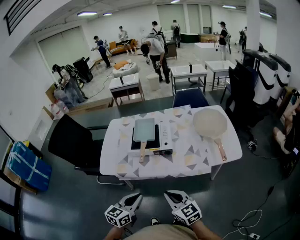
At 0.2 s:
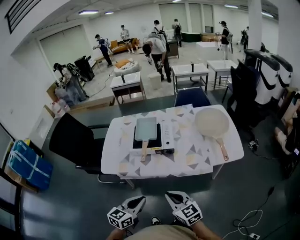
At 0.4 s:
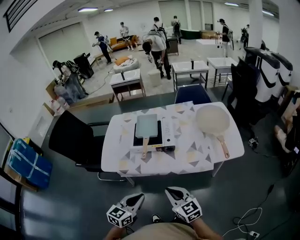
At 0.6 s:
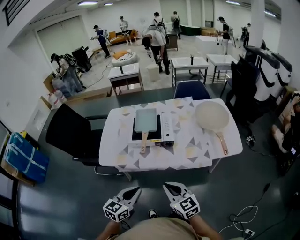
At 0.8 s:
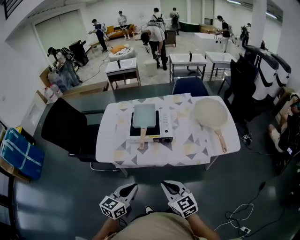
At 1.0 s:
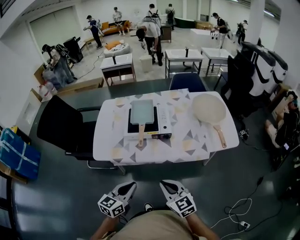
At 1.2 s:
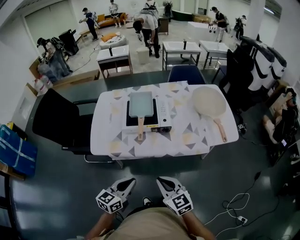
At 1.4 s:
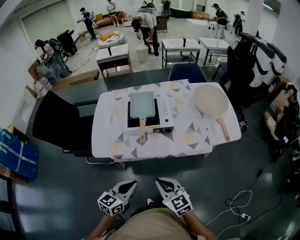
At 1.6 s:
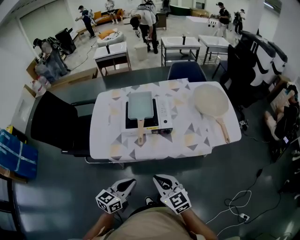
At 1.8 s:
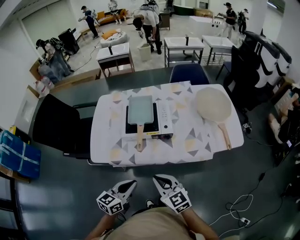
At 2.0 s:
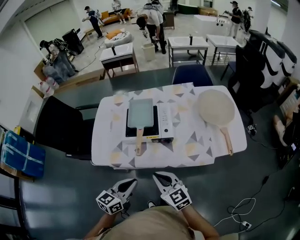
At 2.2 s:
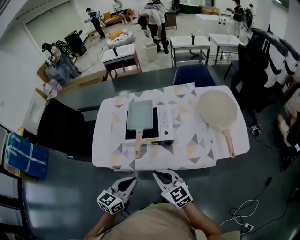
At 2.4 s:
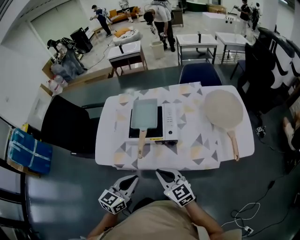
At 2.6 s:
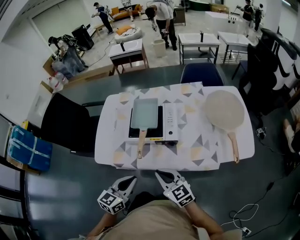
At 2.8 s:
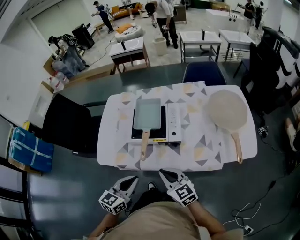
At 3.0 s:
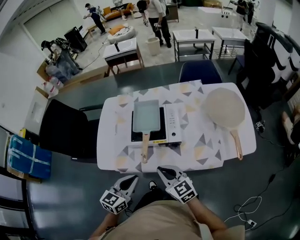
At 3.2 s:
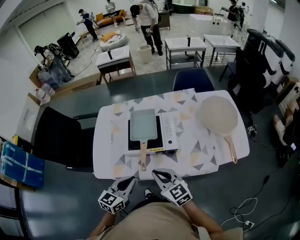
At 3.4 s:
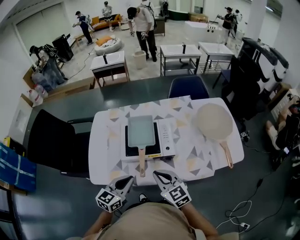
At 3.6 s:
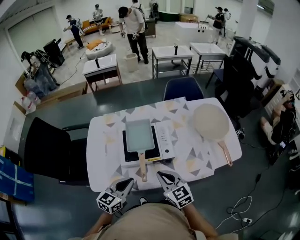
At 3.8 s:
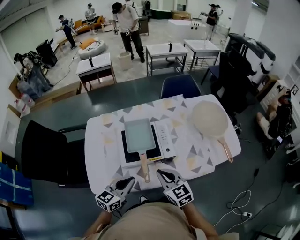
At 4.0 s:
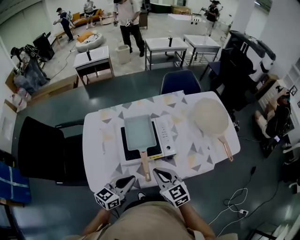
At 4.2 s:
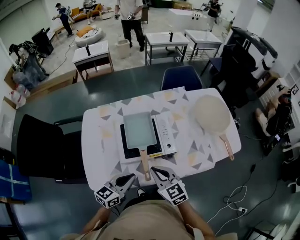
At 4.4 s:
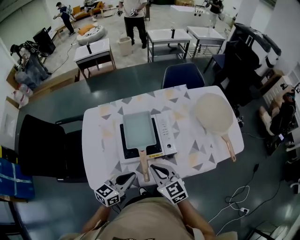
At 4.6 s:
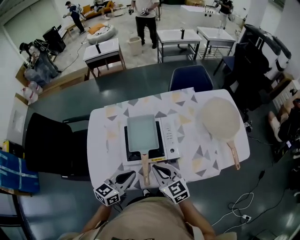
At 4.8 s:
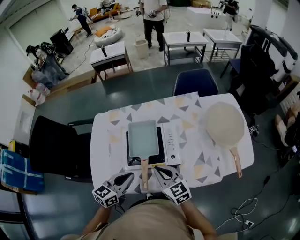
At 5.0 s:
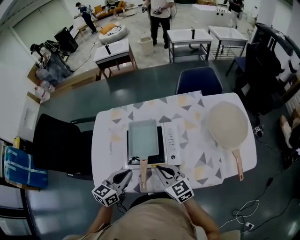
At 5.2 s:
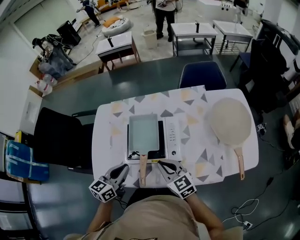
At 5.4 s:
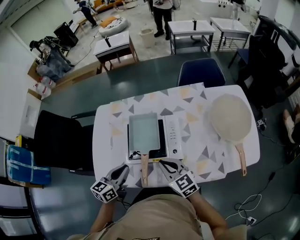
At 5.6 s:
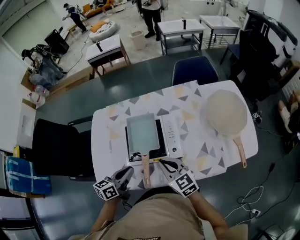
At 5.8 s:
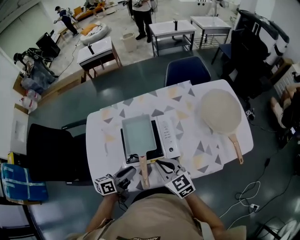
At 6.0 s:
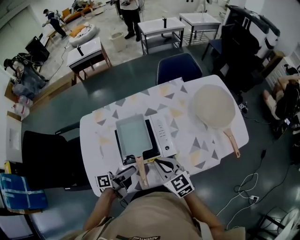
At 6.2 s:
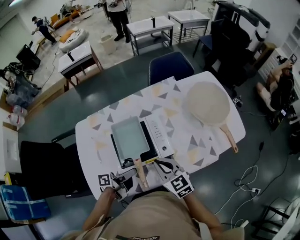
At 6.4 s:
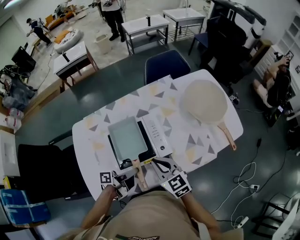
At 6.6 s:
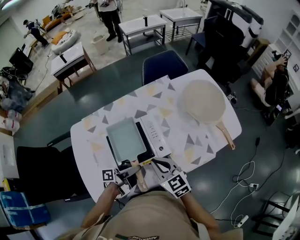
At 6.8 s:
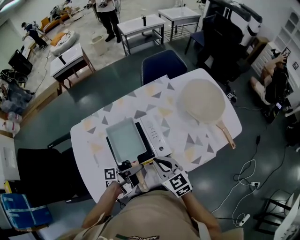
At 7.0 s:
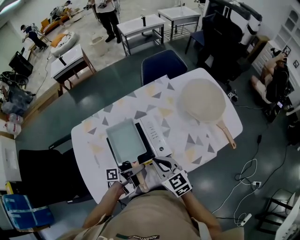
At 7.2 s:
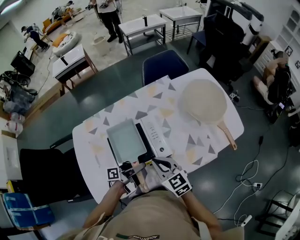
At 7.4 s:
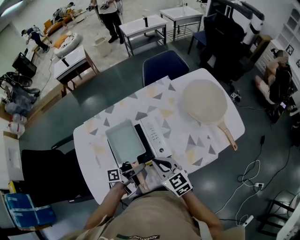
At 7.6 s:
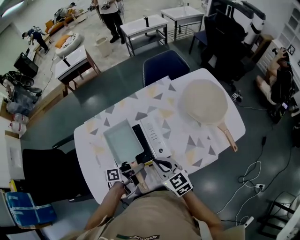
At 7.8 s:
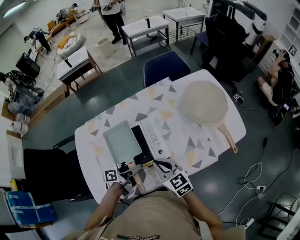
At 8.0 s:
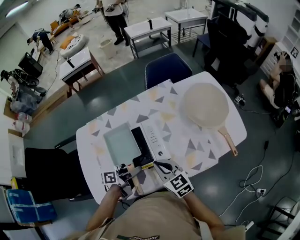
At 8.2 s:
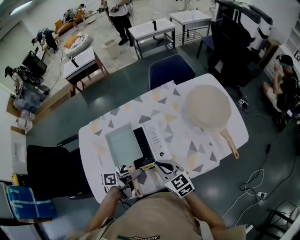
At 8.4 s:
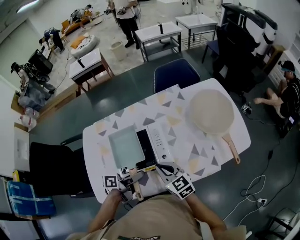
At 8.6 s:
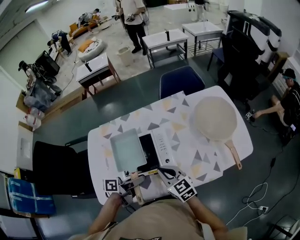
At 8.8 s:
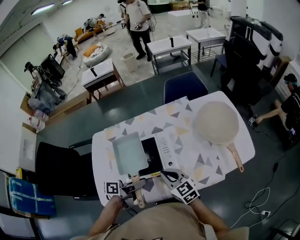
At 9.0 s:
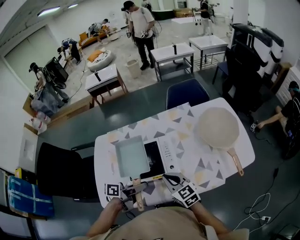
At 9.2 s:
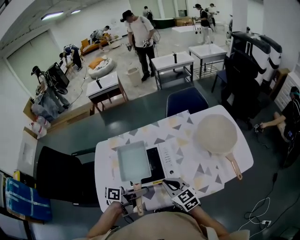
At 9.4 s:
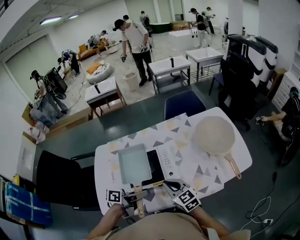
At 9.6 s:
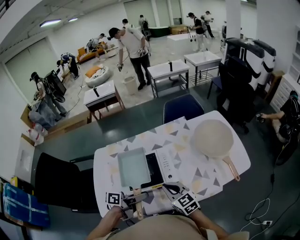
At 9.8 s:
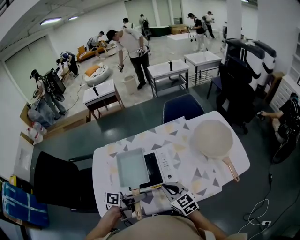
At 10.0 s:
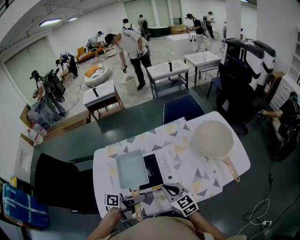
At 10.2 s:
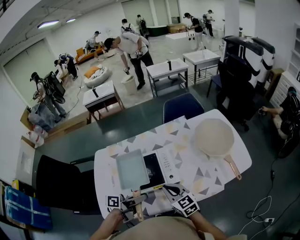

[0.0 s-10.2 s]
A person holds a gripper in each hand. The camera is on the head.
0.0 to 1.4 s: Both grippers move to the left, some 5 cm.
1.4 to 3.0 s: Both grippers travel together forward, approximately 15 cm.
3.0 to 4.4 s: The right gripper shifts about 10 cm forward and to the left. Meanwhile the left gripper is displaced forward by roughly 10 cm, and changes its angle by approximately 20 degrees.
4.4 to 5.8 s: The left gripper heads forward, covering approximately 5 cm, and turns by some 30 degrees, while the right gripper shifts by approximately 5 cm.
5.8 to 7.2 s: The left gripper goes some 10 cm to the right and forward, swivels approximately 40 degrees, and opens and closes again.
7.2 to 8.8 s: The left gripper moves upward, approximately 10 cm, and swivels some 20 degrees.
8.8 to 10.2 s: The grippers stay close to where they were, moving slightly.

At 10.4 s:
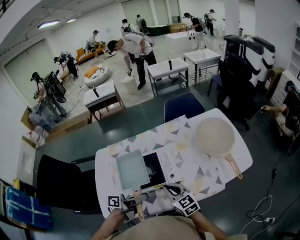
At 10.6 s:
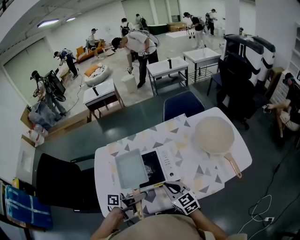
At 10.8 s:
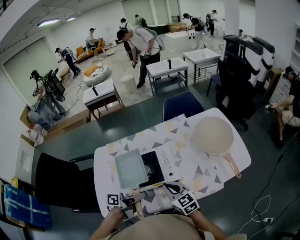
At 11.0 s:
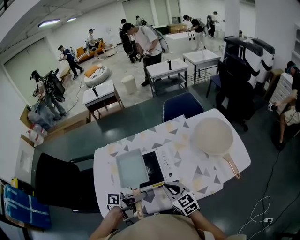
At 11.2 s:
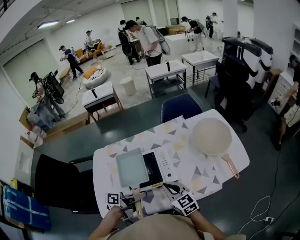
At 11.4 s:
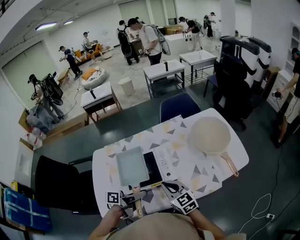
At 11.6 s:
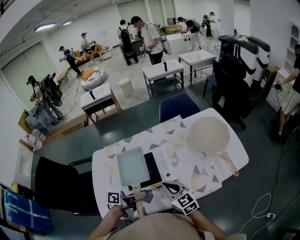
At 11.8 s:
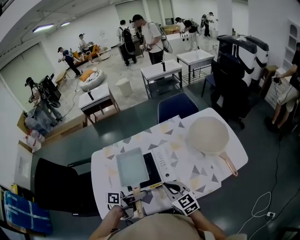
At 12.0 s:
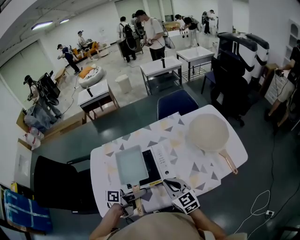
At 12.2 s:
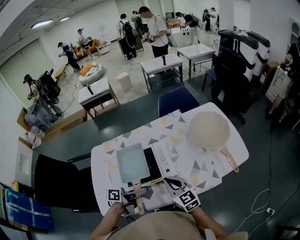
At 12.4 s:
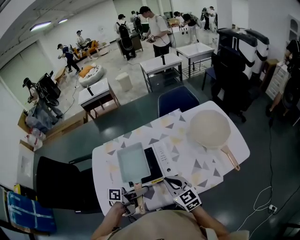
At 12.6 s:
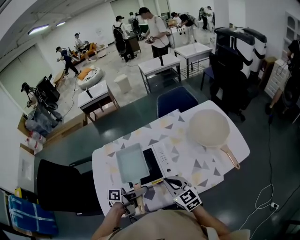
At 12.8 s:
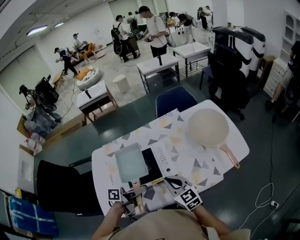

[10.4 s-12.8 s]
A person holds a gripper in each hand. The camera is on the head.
10.4 to 12.8 s: The grippers move only a little.

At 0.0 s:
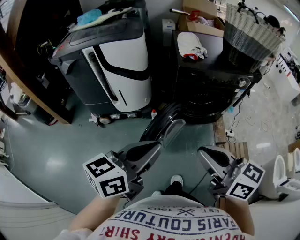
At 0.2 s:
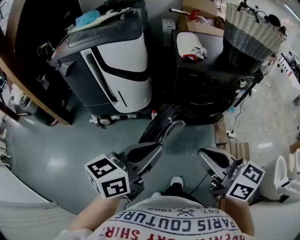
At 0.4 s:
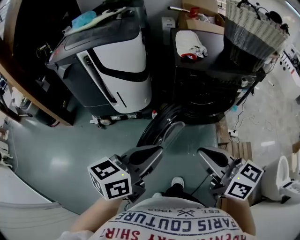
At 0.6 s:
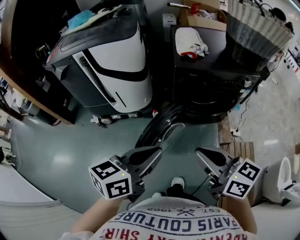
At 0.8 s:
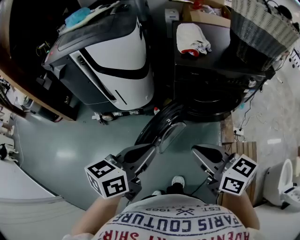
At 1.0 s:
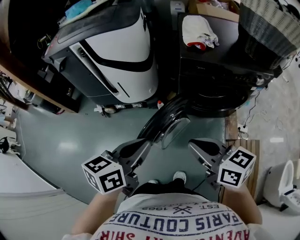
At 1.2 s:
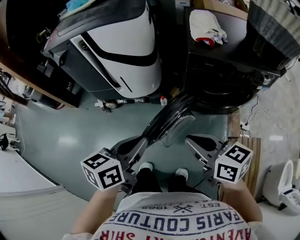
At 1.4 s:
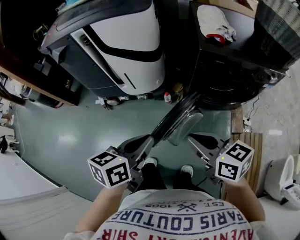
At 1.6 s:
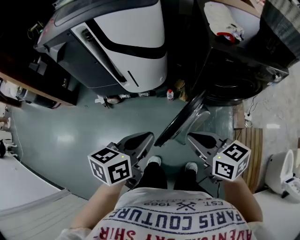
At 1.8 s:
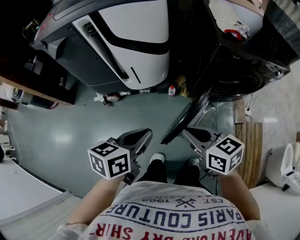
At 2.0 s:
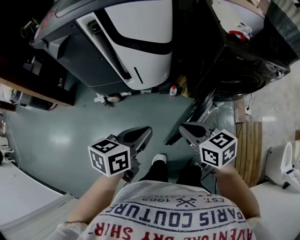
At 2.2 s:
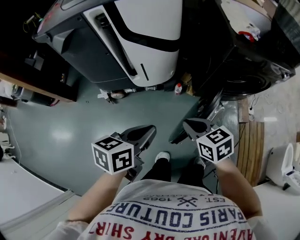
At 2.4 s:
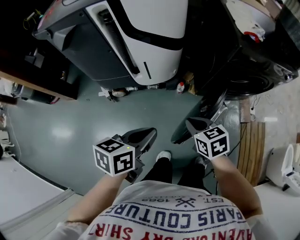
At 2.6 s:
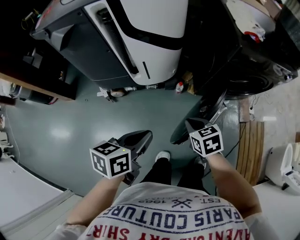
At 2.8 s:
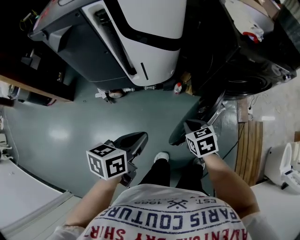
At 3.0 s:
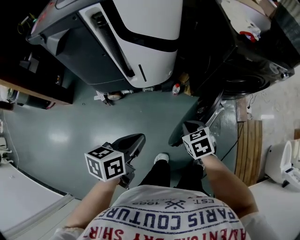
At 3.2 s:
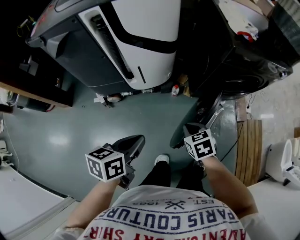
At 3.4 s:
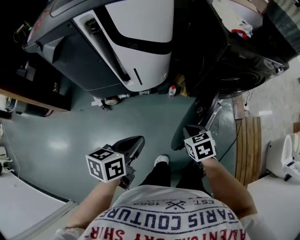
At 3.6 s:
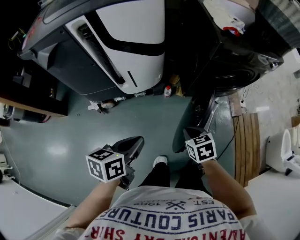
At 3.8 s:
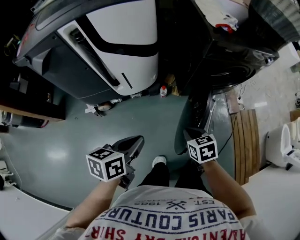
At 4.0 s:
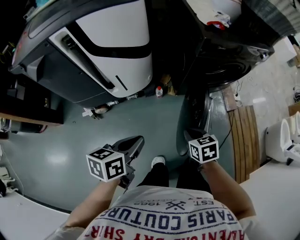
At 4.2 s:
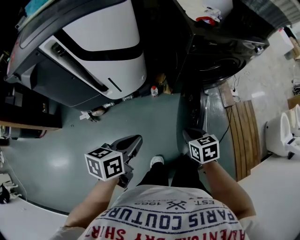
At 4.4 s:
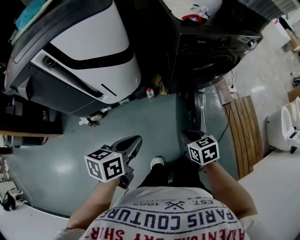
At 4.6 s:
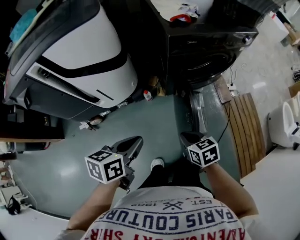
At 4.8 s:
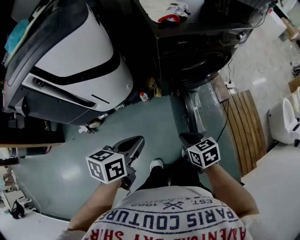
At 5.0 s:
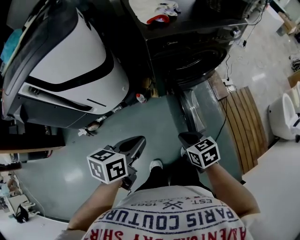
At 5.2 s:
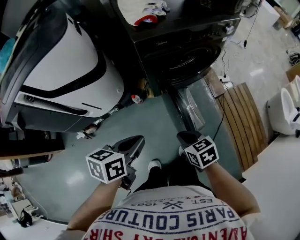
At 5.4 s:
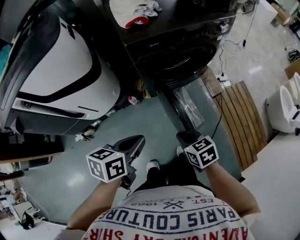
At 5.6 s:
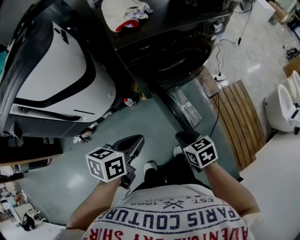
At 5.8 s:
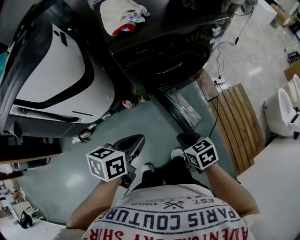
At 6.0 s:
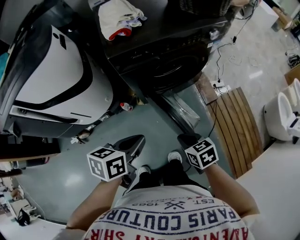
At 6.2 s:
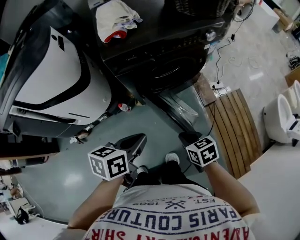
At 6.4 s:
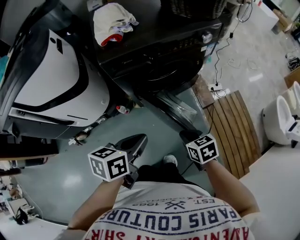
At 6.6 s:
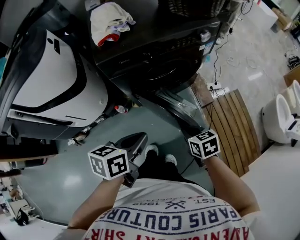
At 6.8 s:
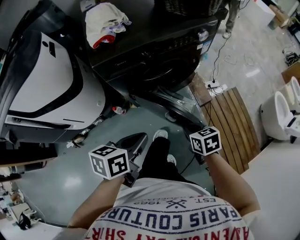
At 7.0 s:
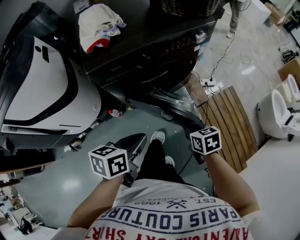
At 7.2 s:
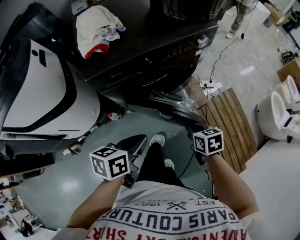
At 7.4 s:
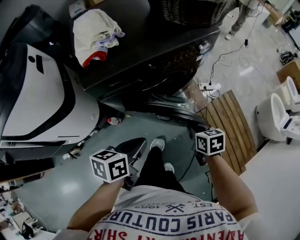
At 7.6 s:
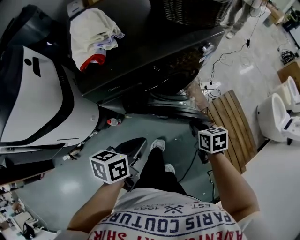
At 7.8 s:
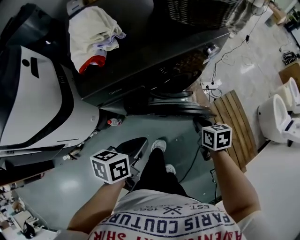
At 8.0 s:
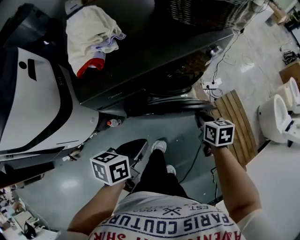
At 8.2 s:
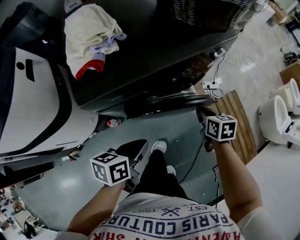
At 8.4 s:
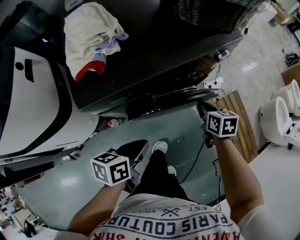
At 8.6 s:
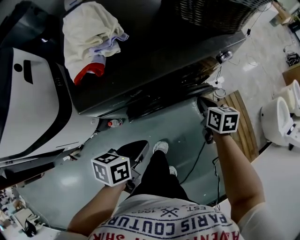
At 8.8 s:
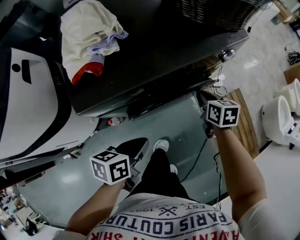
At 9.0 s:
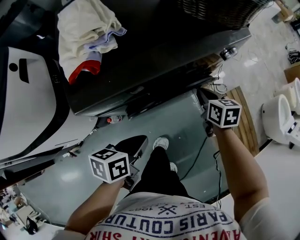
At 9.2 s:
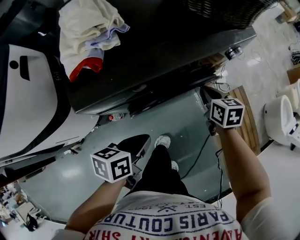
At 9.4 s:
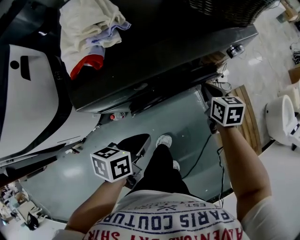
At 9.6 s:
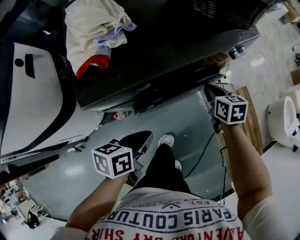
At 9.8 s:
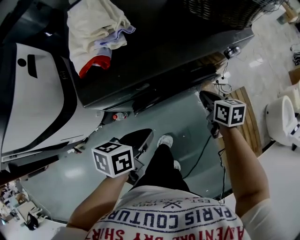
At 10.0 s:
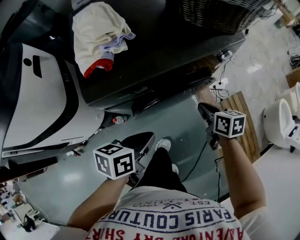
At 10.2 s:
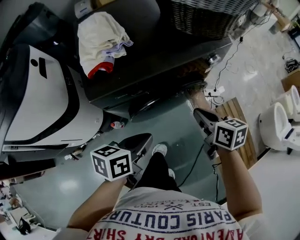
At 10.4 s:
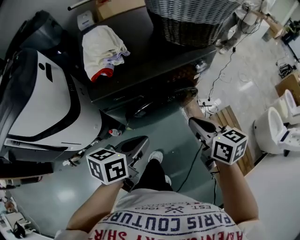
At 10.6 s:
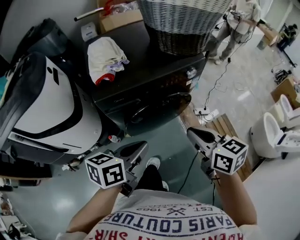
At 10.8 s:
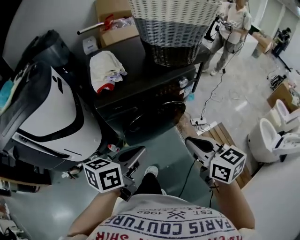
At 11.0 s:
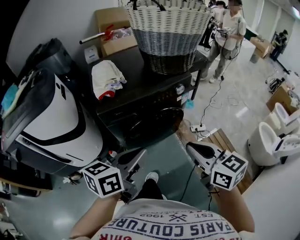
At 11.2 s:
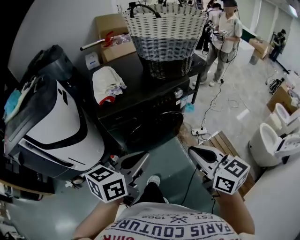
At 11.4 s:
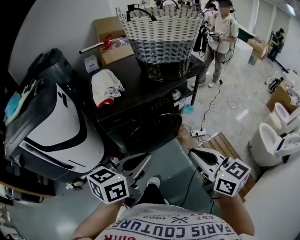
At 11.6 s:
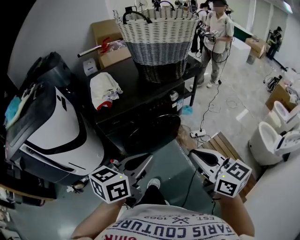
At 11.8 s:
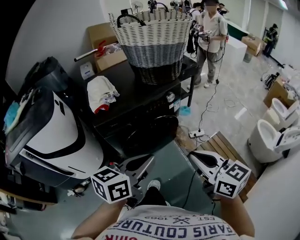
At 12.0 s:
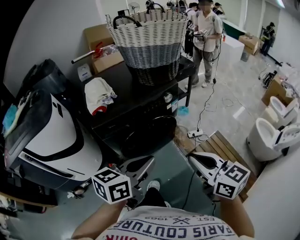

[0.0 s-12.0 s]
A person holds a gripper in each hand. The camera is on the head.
0.0 to 1.6 s: The two grippers go about 25 cm downward, forward and to the left. The right gripper turns by about 20 degrees; the left gripper swivels approximately 20 degrees.
1.6 to 3.0 s: The right gripper heads downward and to the left, covering some 20 cm, and tilts its fingers about 30 degrees downward. Meanwhile the left gripper moves to the left and downward, some 15 cm.
3.0 to 4.4 s: The grippers both shift to the right by roughly 10 cm. The right gripper turns by about 30 degrees.
4.4 to 6.0 s: Both grippers move to the right, approximately 20 cm.
6.0 to 7.6 s: The right gripper travels forward and to the right by approximately 20 cm, and swivels some 20 degrees. The left gripper travels forward and to the right by about 15 cm.
7.6 to 9.0 s: The right gripper heads forward, covering about 20 cm, while the left gripper heads forward and downward, covering some 10 cm.
9.0 to 10.4 s: The right gripper shifts approximately 25 cm upward and backward, and turns by about 20 degrees; the left gripper travels upward by roughly 15 cm.
10.4 to 12.0 s: The right gripper is displaced backward, upward and to the right by about 25 cm, and swivels approximately 20 degrees; the left gripper is displaced upward, to the right and backward by some 20 cm, and turns by roughly 20 degrees.
